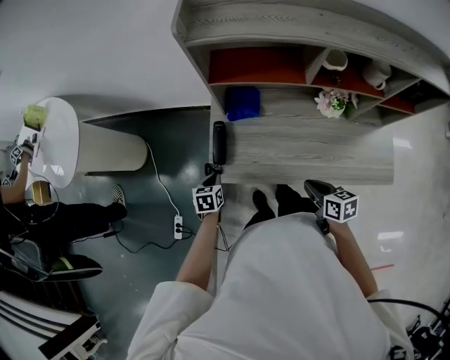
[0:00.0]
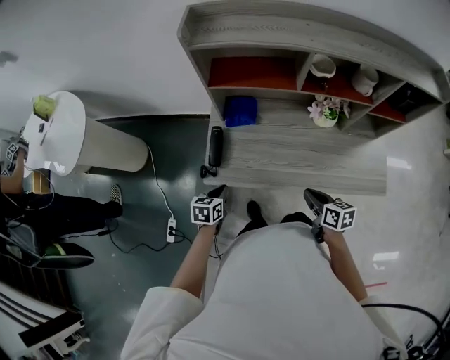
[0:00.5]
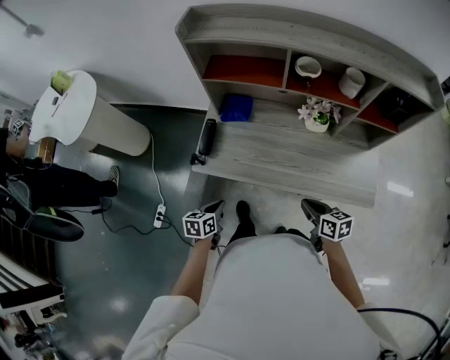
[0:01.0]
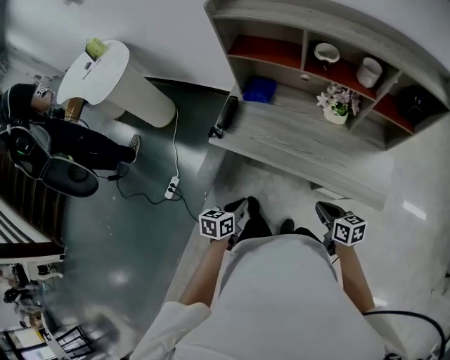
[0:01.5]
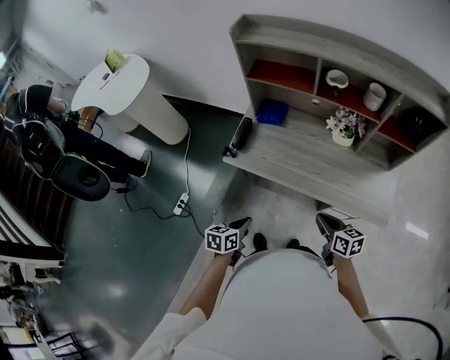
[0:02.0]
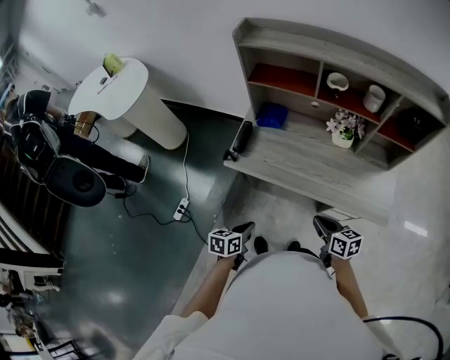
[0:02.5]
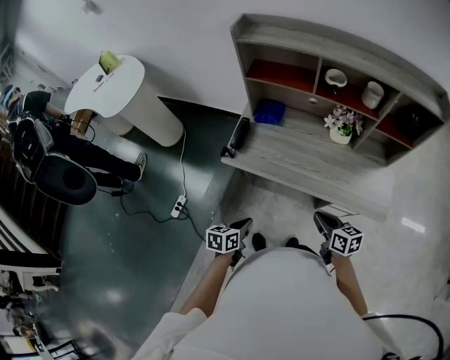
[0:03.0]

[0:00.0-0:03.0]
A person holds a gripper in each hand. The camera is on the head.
0:00.0 to 0:01.5: The left gripper travels backward and to the right by approximately 35 cm, and rotates approximately 20 degrees; the right gripper is displaced backward and to the right by approximately 25 cm.
0:01.5 to 0:03.0: The left gripper shifts by approximately 5 cm, while the right gripper moves to the left, about 5 cm.

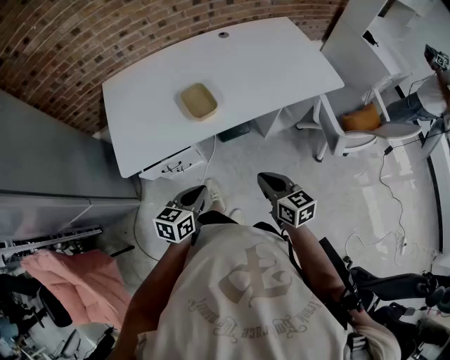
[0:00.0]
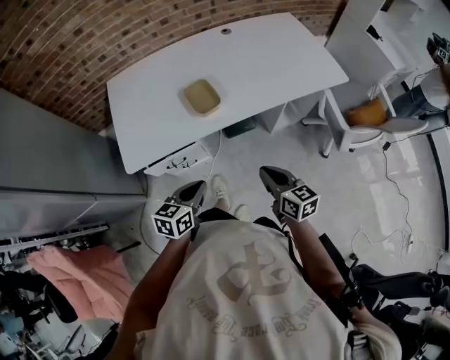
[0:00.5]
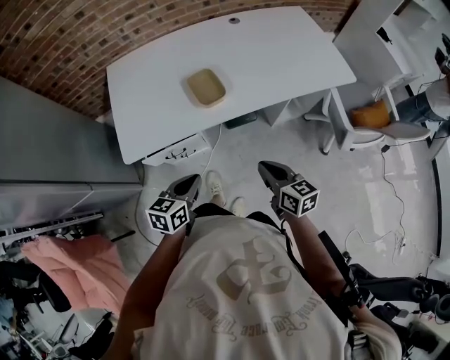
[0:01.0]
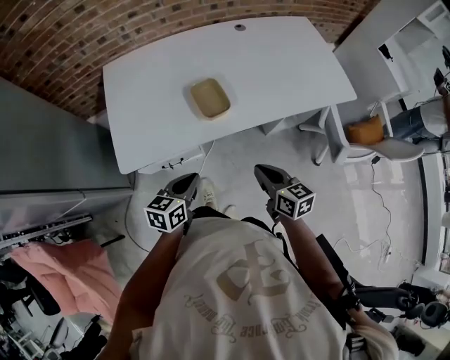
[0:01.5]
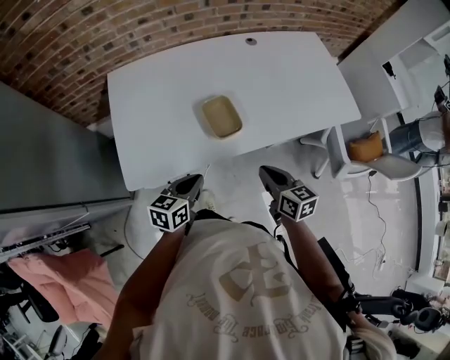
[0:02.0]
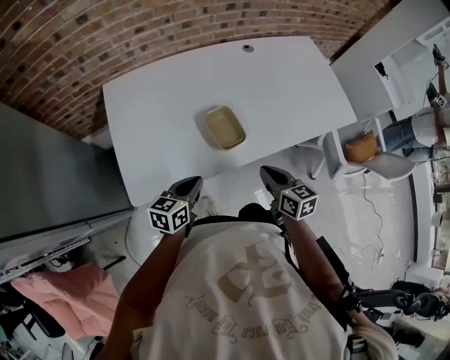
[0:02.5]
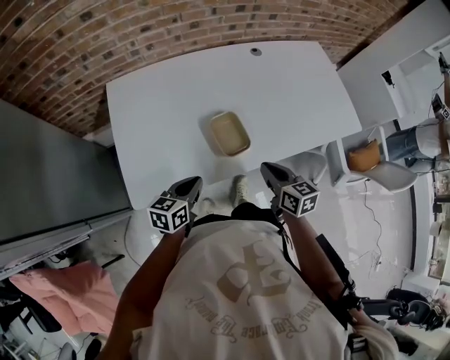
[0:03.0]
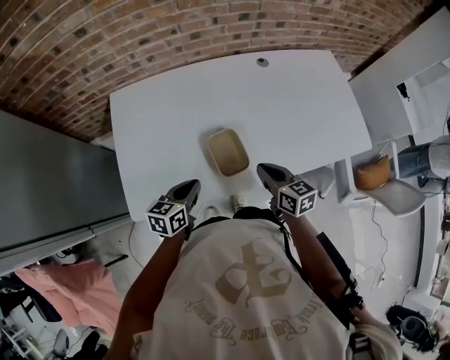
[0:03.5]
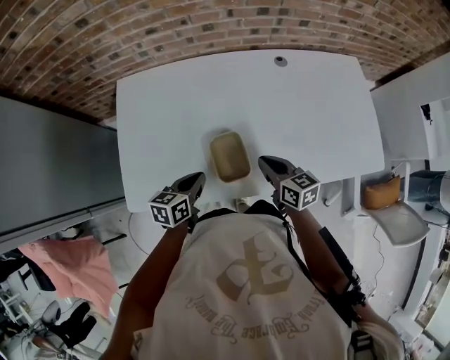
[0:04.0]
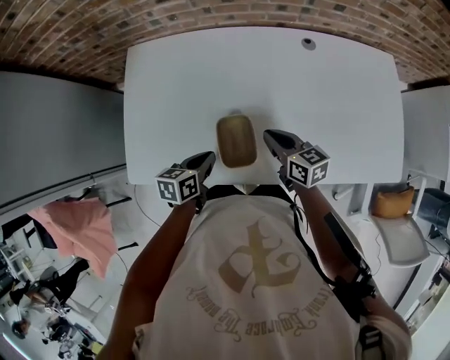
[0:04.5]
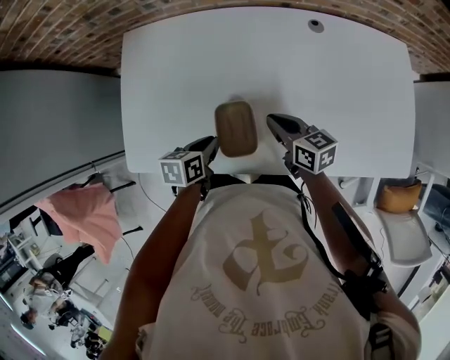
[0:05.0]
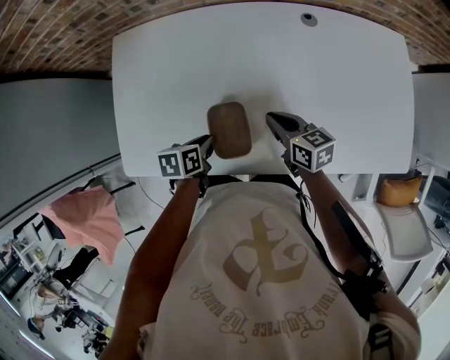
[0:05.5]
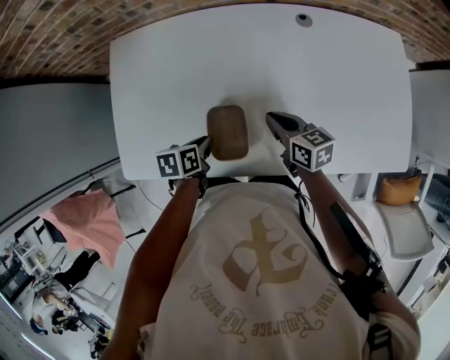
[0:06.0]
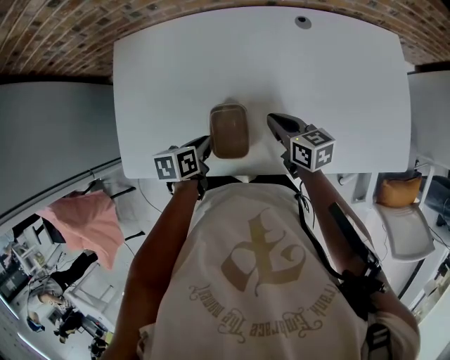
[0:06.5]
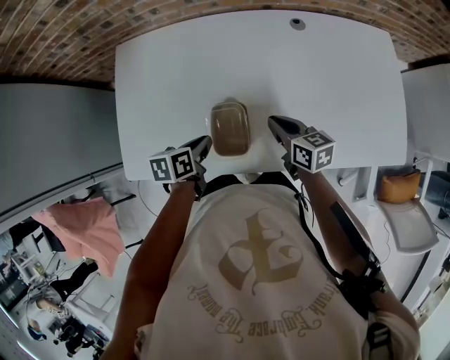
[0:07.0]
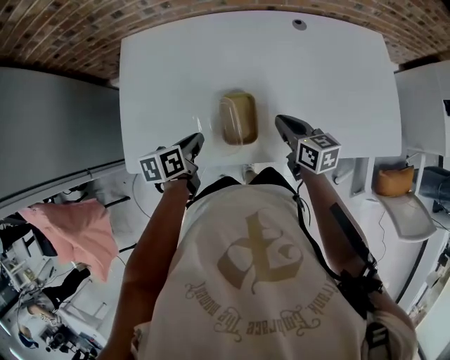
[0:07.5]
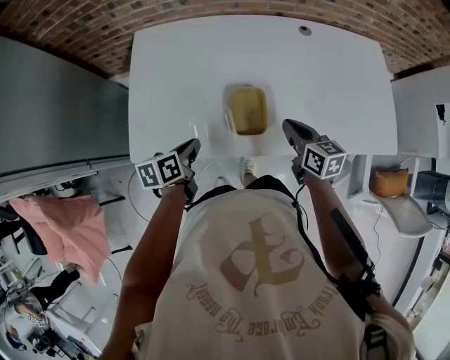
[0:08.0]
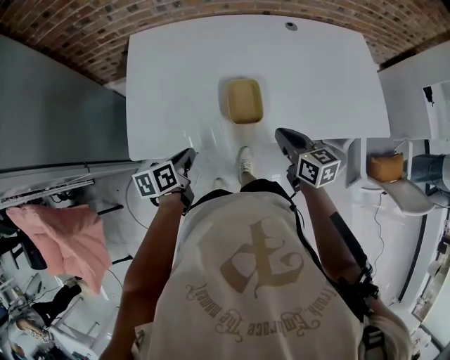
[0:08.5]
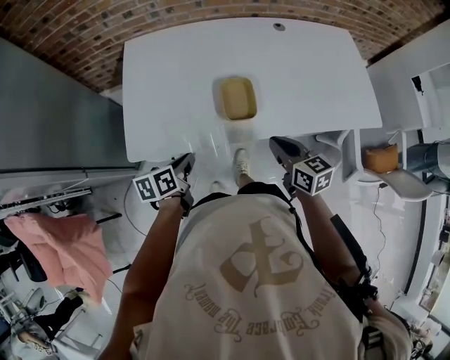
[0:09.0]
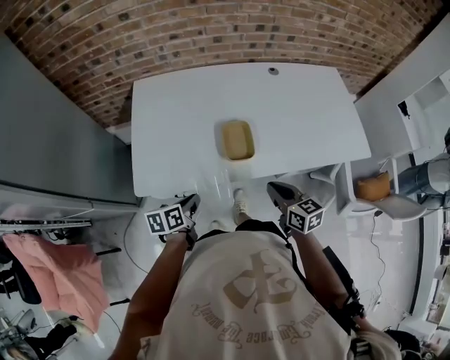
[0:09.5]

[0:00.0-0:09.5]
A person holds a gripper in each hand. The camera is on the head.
0:00.0 to 0:02.0: Both grippers travel together forward and to the left, about 15 cm.
0:02.0 to 0:04.0: The two grippers go some 20 cm forward.
0:04.0 to 0:05.5: The left gripper goes roughly 10 cm downward, and changes its angle by about 30 degrees; the right gripper heads forward and downward, covering some 10 cm.
0:05.5 to 0:07.5: The left gripper travels upward by about 5 cm; the right gripper travels backward by roughly 5 cm.
0:07.5 to 0:09.5: The left gripper moves backward and to the left, approximately 15 cm, while the right gripper heads backward, covering about 20 cm.

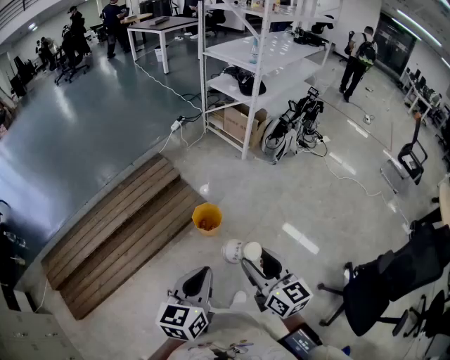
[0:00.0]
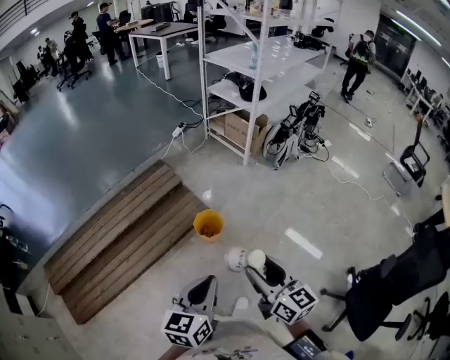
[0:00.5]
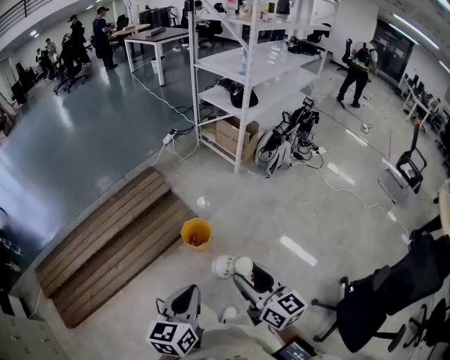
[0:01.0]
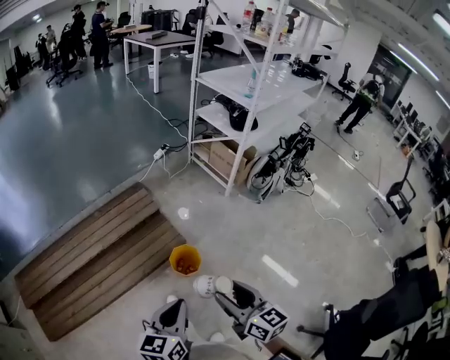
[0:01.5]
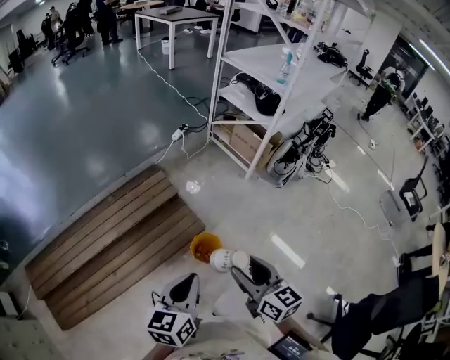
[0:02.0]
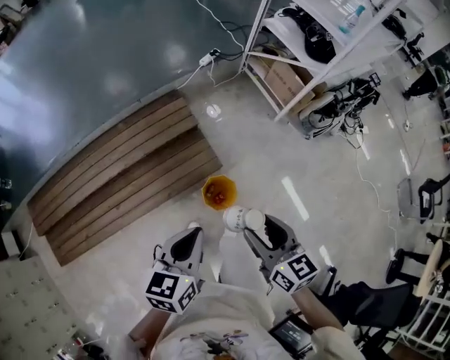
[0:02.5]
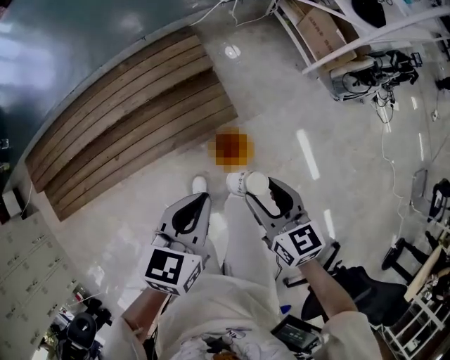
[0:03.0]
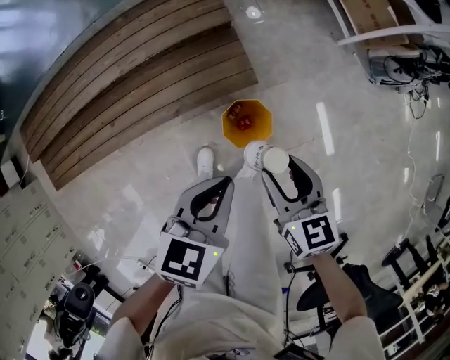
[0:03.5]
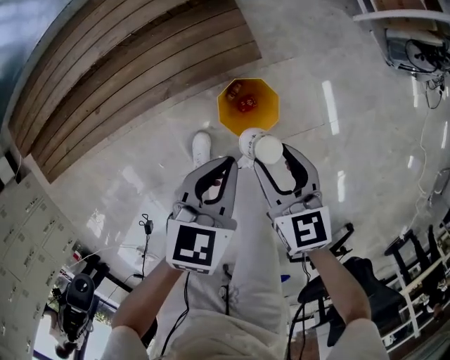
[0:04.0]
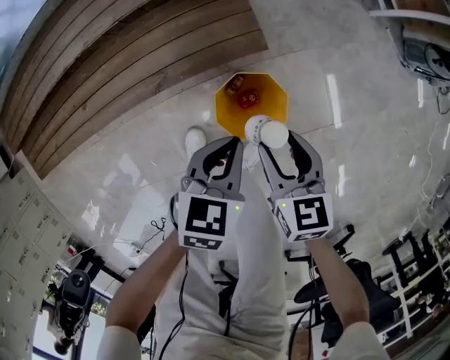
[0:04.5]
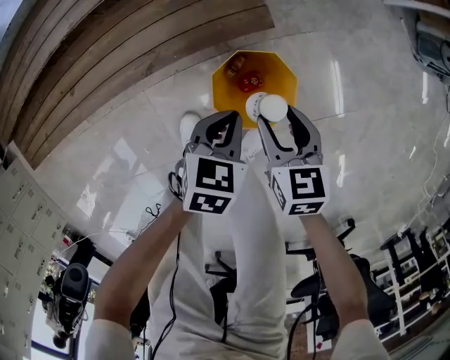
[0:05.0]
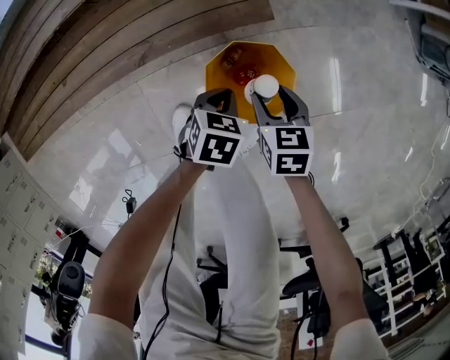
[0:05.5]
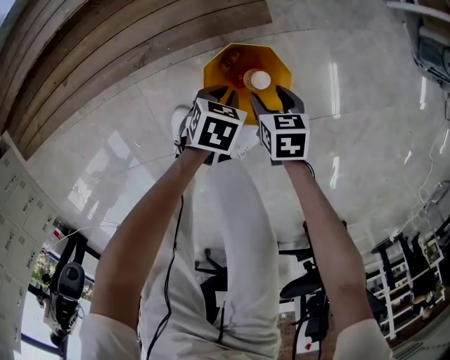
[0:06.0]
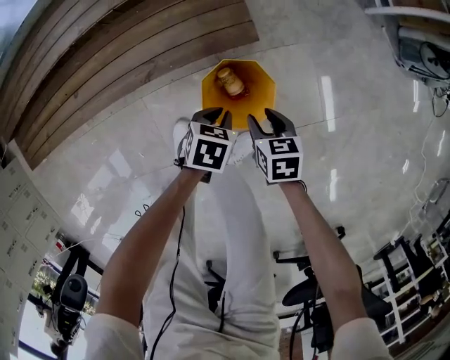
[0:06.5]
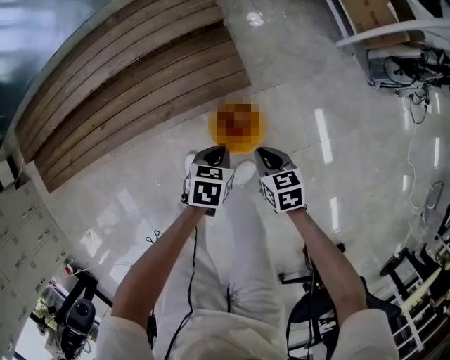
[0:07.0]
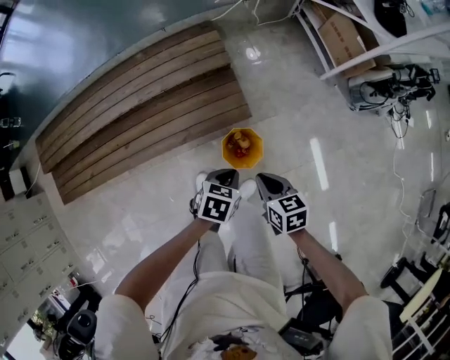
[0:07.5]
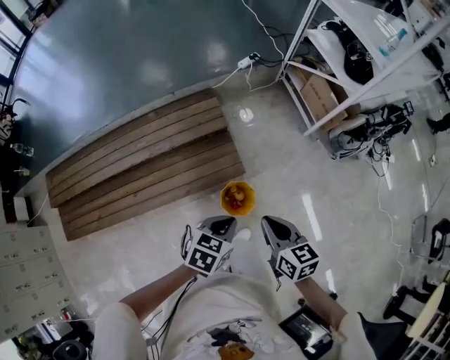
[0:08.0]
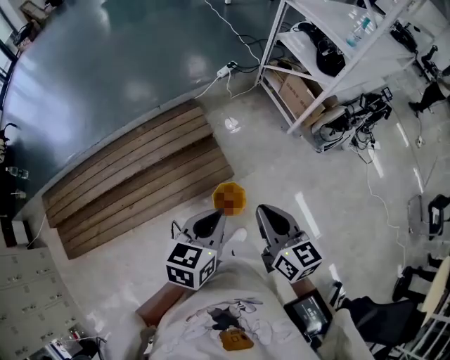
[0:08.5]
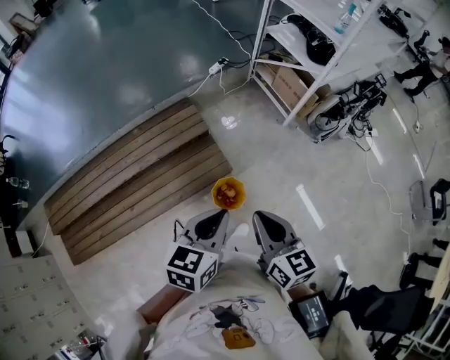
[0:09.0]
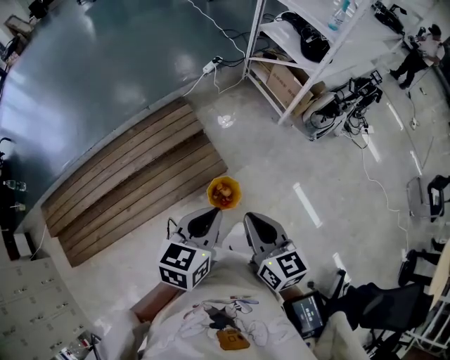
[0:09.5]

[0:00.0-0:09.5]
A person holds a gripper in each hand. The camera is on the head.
0:00.0 to 0:02.0: Both grippers travel together forward, about 30 cm.
0:02.0 to 0:04.0: The grippers both shift downward by approximately 50 cm. The left gripper changes its angle by roughly 30 degrees, while the right gripper changes its angle by roughly 30 degrees.
0:04.0 to 0:05.5: The grippers both shift downward by some 35 cm. The left gripper rotates roughly 20 degrees.
0:05.5 to 0:07.5: The grippers both shift upward by approximately 40 cm. The right gripper closes up.
0:07.5 to 0:09.5: The grippers both shift upward by some 35 cm. The right gripper rotates roughly 40 degrees, while the left gripper changes its angle by some 30 degrees.

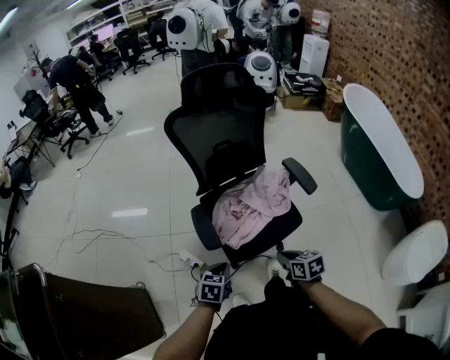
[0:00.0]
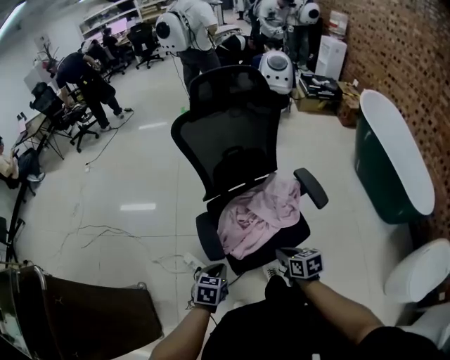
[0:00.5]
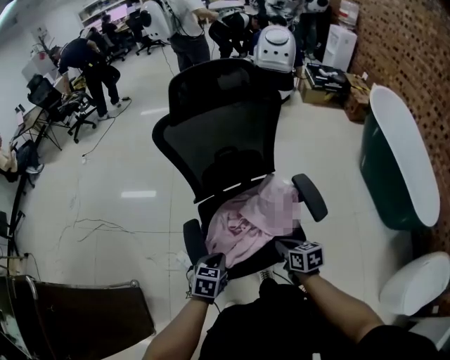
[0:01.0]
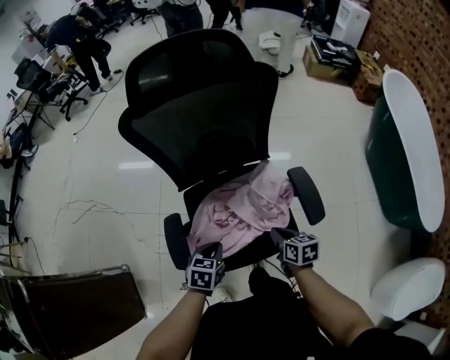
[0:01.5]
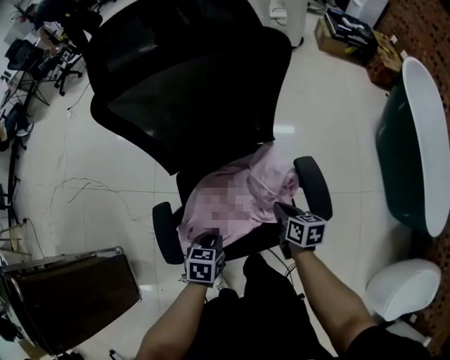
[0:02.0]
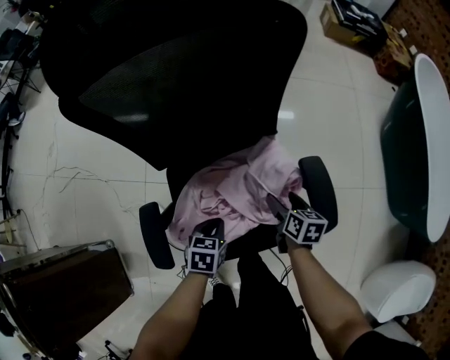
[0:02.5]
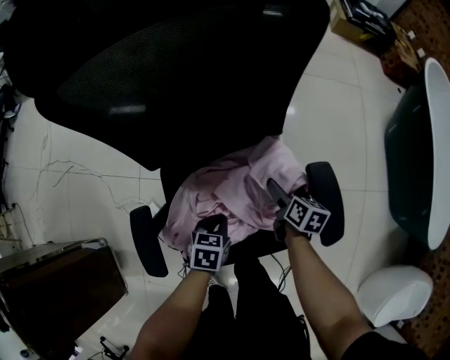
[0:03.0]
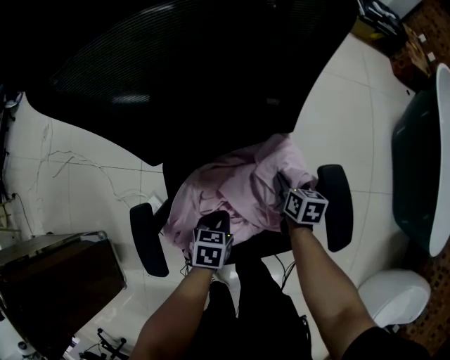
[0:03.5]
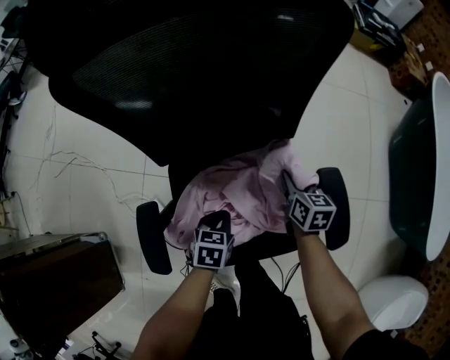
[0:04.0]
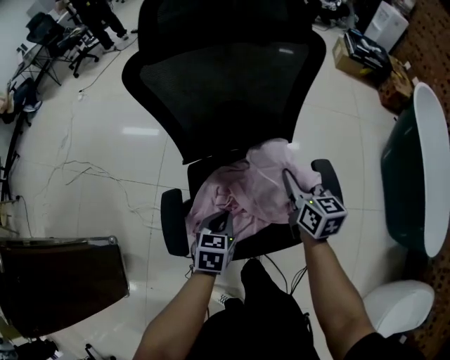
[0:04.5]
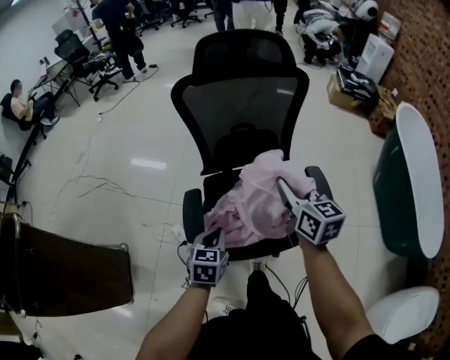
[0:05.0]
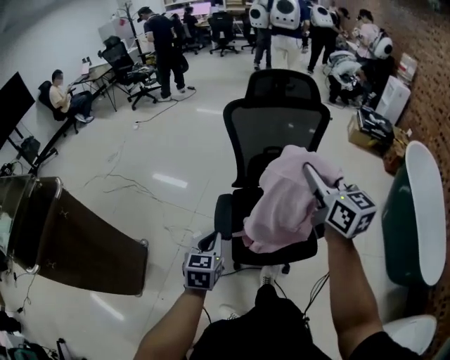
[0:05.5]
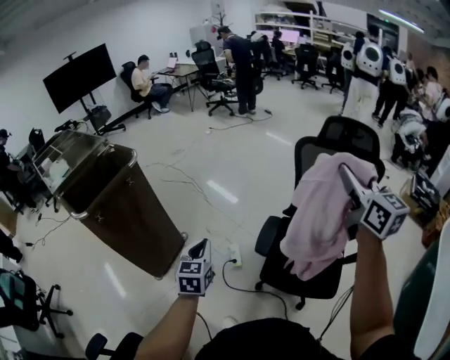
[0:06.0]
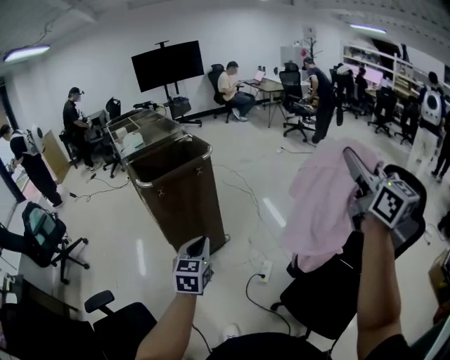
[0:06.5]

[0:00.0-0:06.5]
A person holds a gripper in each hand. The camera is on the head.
0:00.0 to 0:02.0: Both grippers travel together forward and to the right, roughly 30 cm.
0:02.0 to 0:04.5: The left gripper reaches some 15 cm downward, then returns, while the right gripper goes approximately 15 cm upward, forward and to the left, turns by about 30 degrees, and opens, then closes once more.
0:04.5 to 0:06.5: The pair of grippers is taken roughly 50 cm. The right gripper shifts approximately 60 cm upward, and points its fingers about 40 degrees further upward. Meanwhile the left gripper swivels some 70 degrees.
